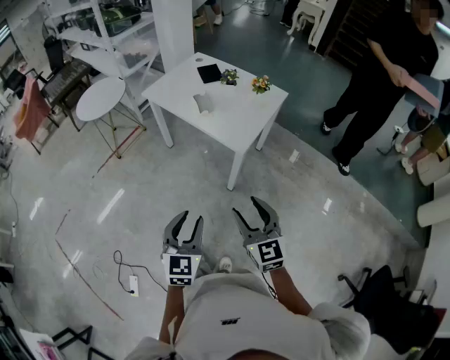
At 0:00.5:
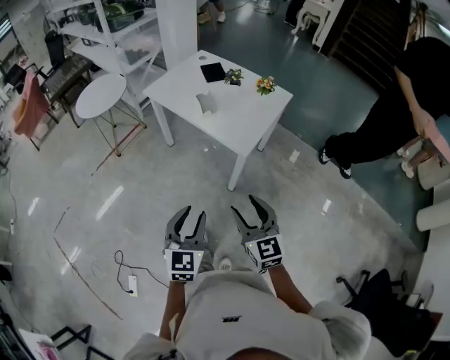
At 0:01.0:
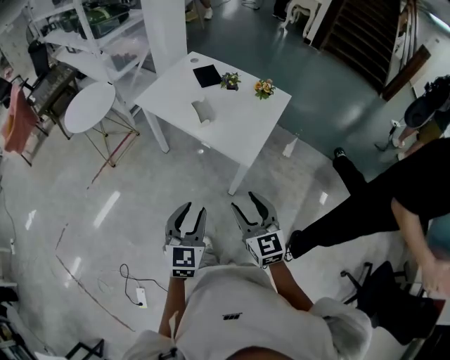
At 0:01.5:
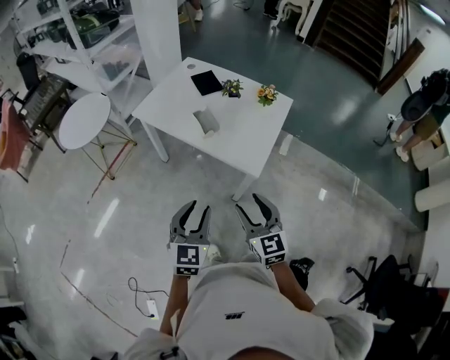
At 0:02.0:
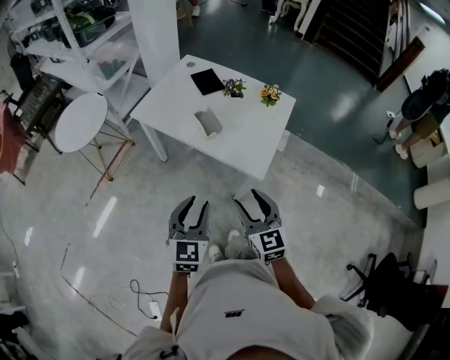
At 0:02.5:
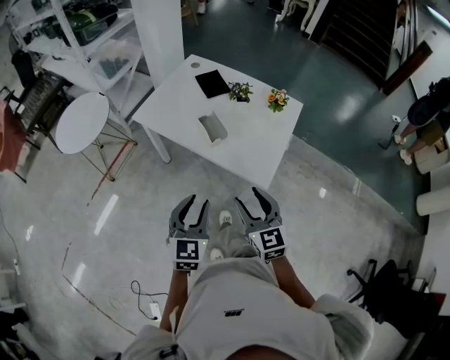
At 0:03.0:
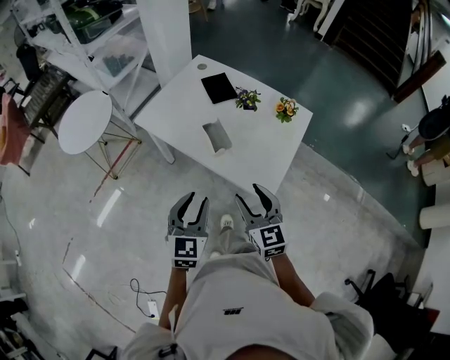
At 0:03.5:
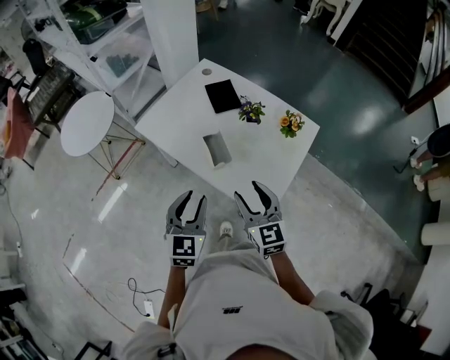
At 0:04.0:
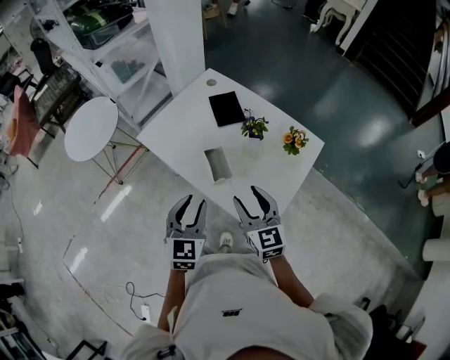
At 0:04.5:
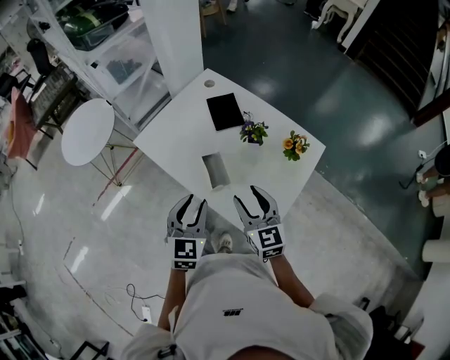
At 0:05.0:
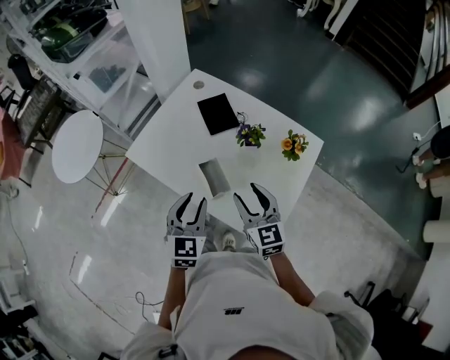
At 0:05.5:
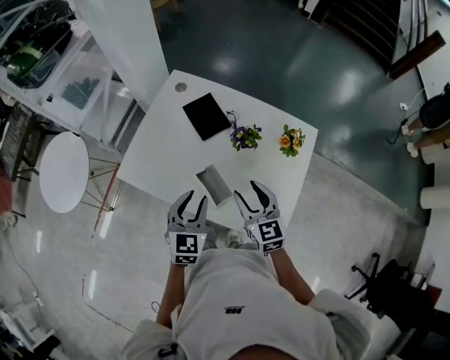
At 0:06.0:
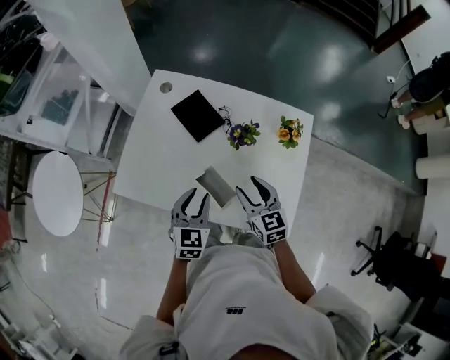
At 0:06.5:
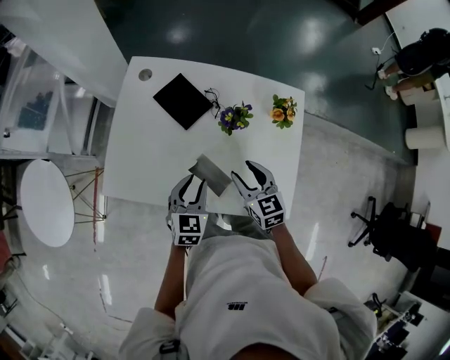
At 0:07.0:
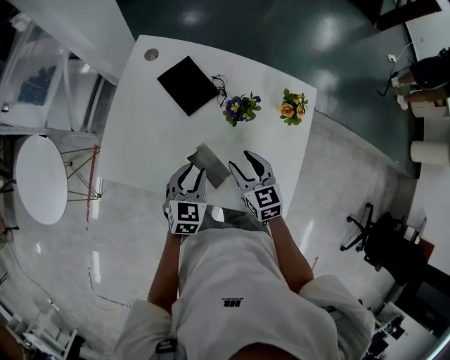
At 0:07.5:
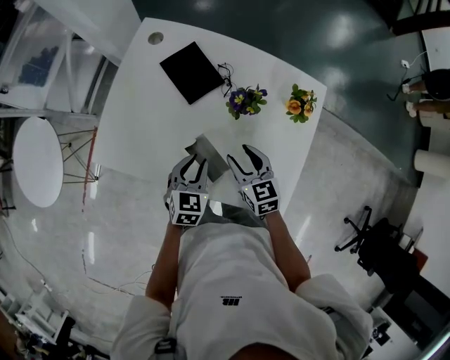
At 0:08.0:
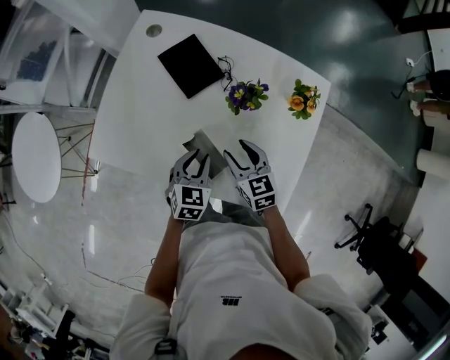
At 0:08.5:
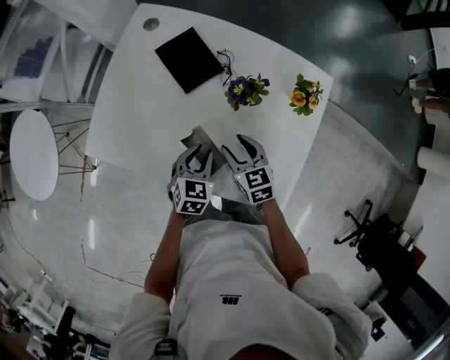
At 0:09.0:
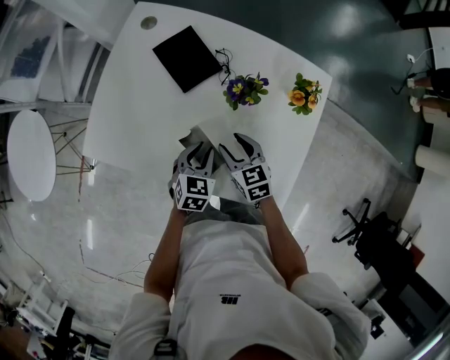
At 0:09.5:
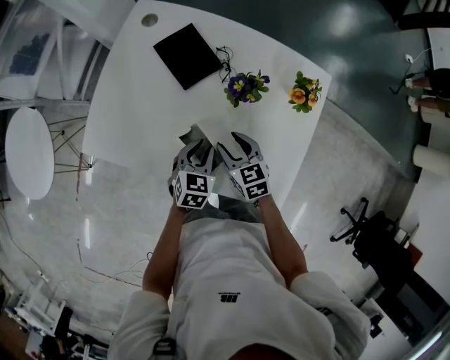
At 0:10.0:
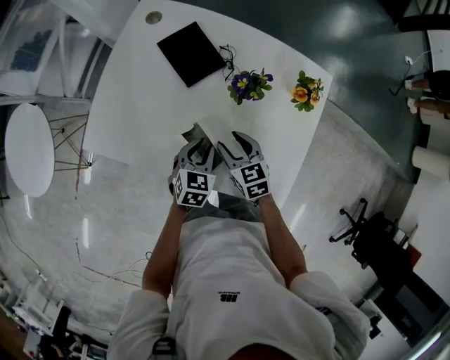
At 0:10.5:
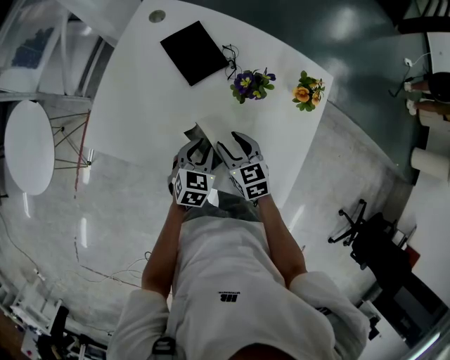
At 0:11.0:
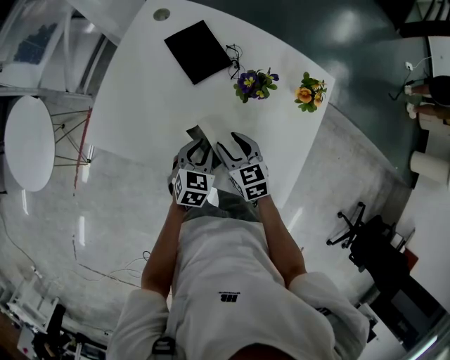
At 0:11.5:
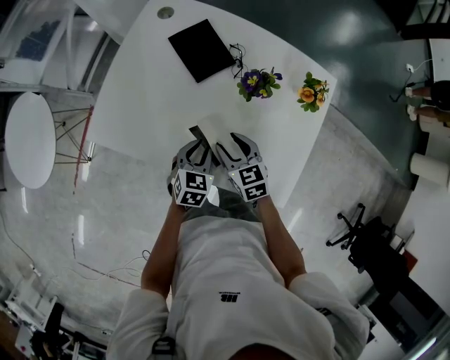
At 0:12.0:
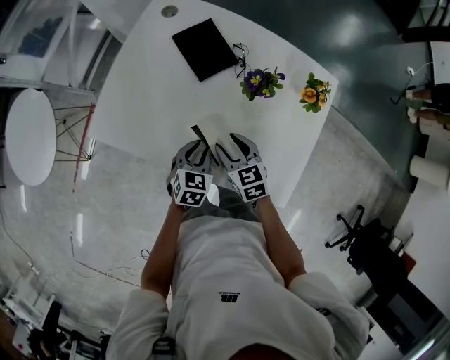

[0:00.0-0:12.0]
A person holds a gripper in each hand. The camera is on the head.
0:00.0 to 0:02.0: The left gripper goes roughly 25 cm forward. The right gripper moves forward and to the left, about 25 cm.
0:02.0 to 0:04.0: The two grippers go approximately 25 cm forward.
0:04.0 to 0:06.0: Both grippers move forward and downward, roughly 20 cm. The left gripper turns by about 30 degrees; the right gripper turns by approximately 30 degrees.
0:06.0 to 0:08.0: The two grippers go approximately 10 cm downward.
0:08.0 to 0:10.0: The grippers make only small movements.
0:10.0 to 0:12.0: There are only small adjustments of the grippers.

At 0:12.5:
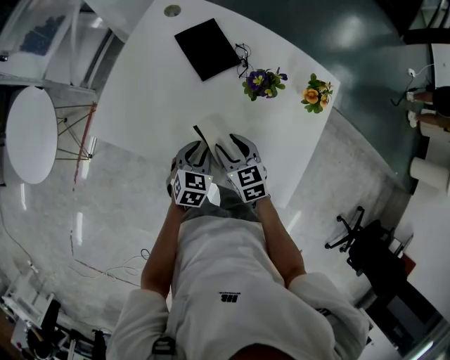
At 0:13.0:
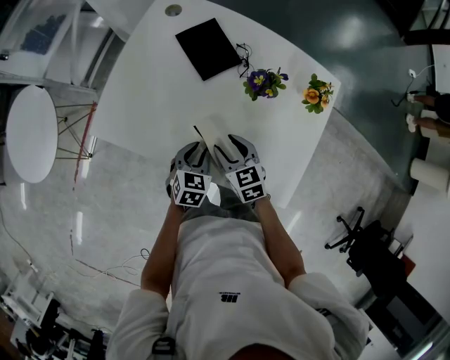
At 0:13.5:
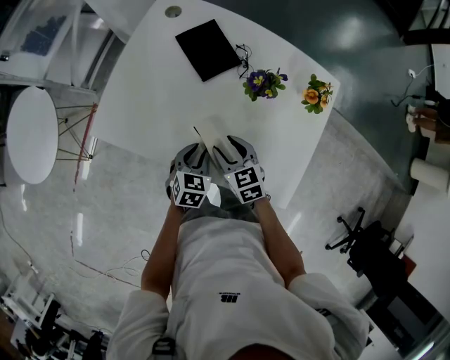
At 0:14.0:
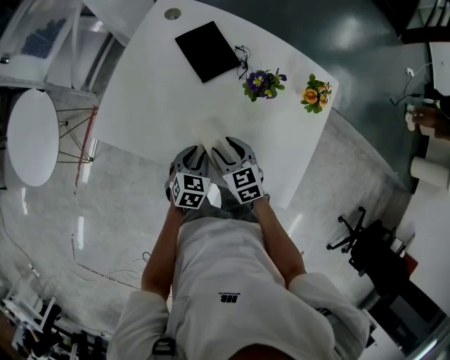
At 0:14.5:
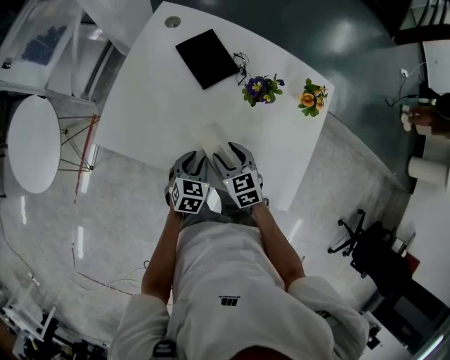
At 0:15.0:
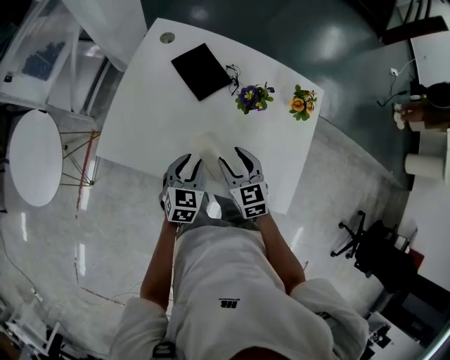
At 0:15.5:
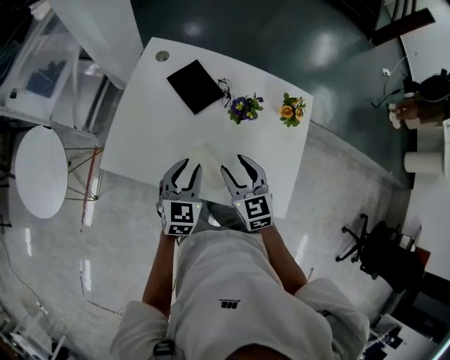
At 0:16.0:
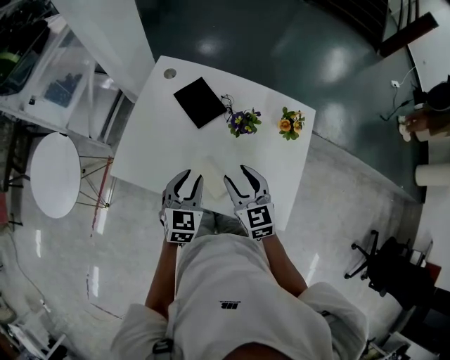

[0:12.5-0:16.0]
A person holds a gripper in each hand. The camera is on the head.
0:12.5 to 0:14.5: The grippers make only small movements.
0:14.5 to 0:16.0: Both grippers travel together upward, some 20 cm.

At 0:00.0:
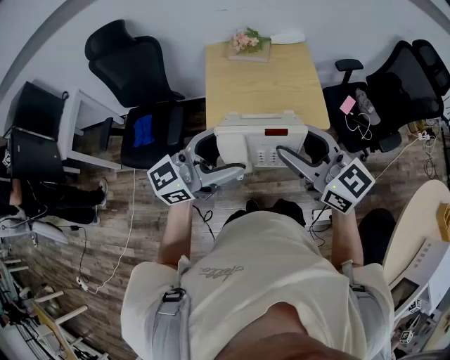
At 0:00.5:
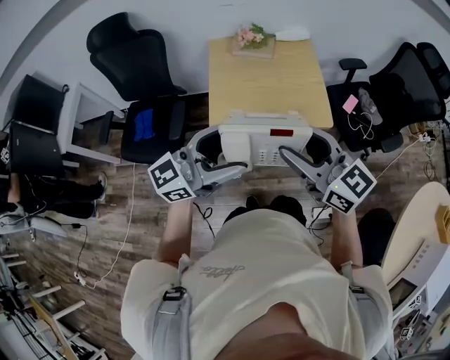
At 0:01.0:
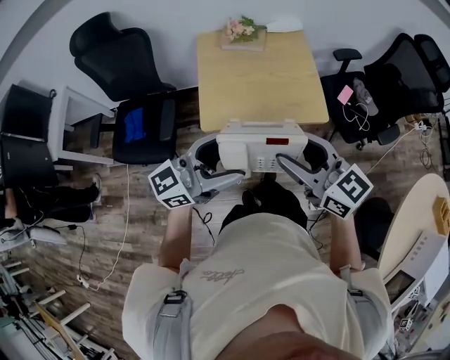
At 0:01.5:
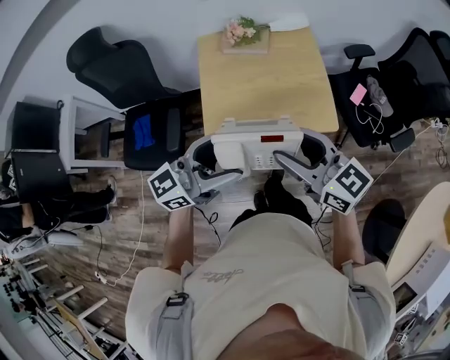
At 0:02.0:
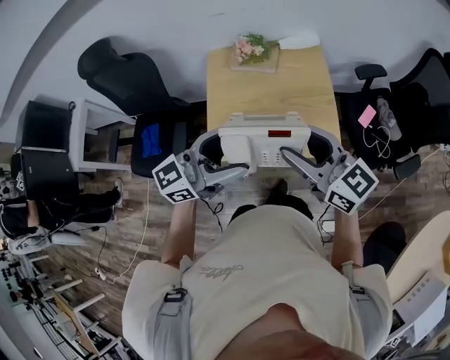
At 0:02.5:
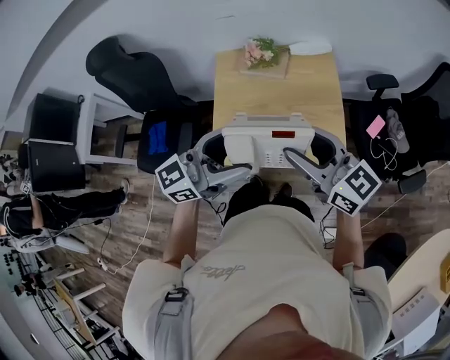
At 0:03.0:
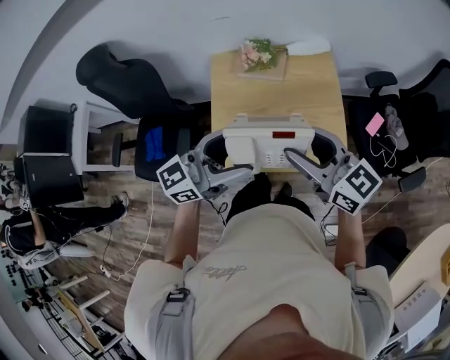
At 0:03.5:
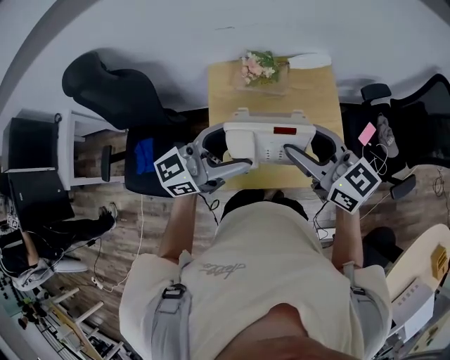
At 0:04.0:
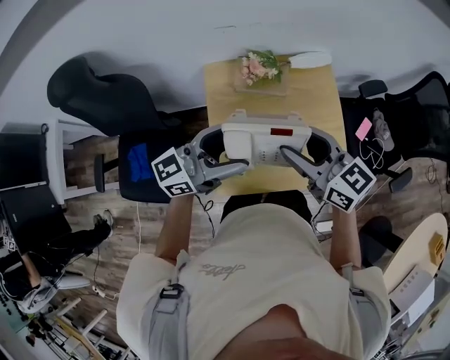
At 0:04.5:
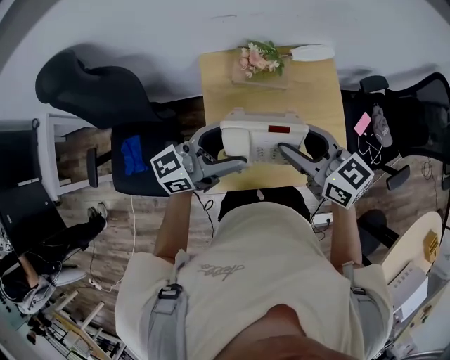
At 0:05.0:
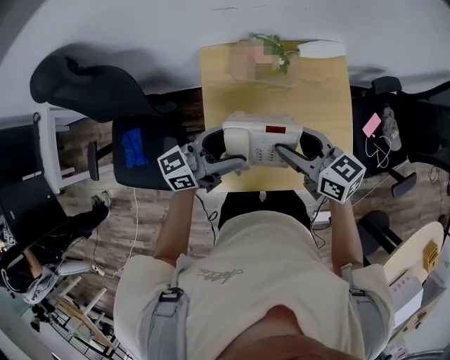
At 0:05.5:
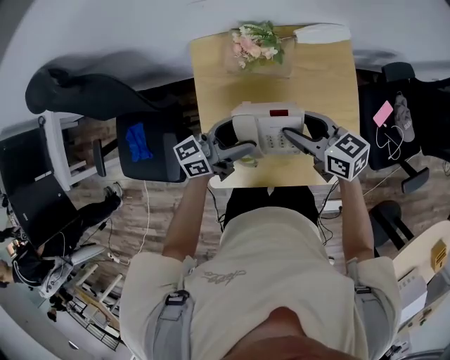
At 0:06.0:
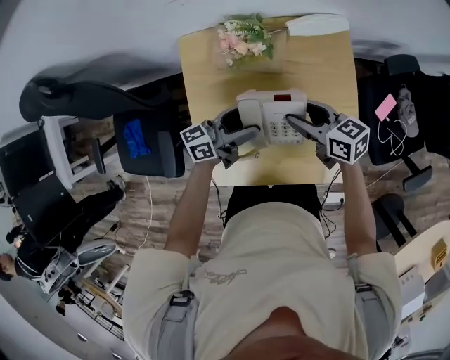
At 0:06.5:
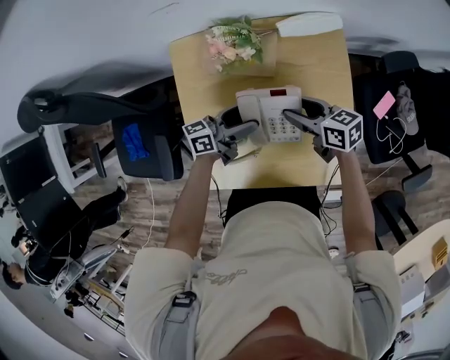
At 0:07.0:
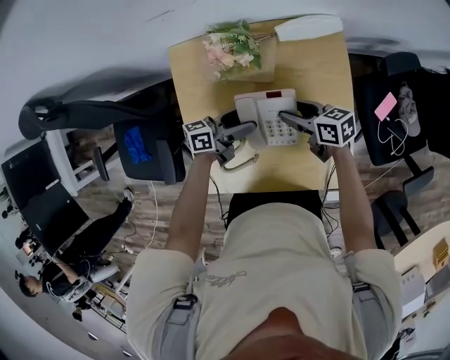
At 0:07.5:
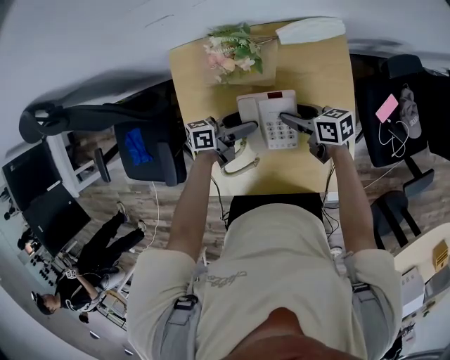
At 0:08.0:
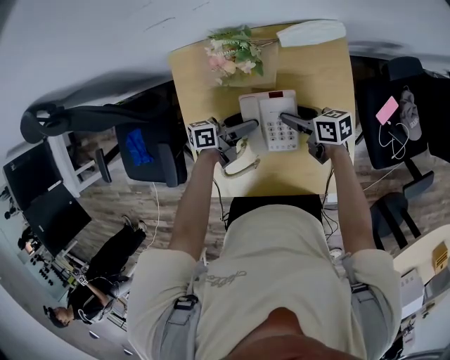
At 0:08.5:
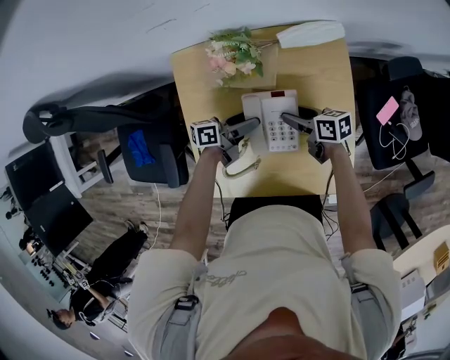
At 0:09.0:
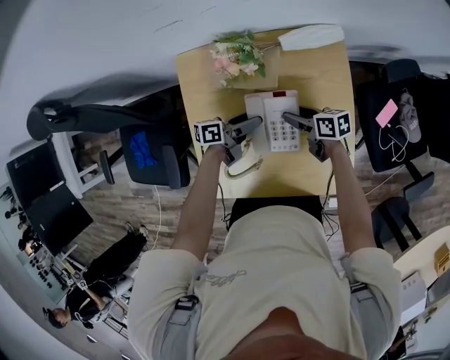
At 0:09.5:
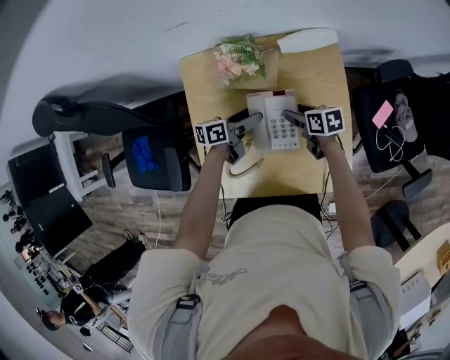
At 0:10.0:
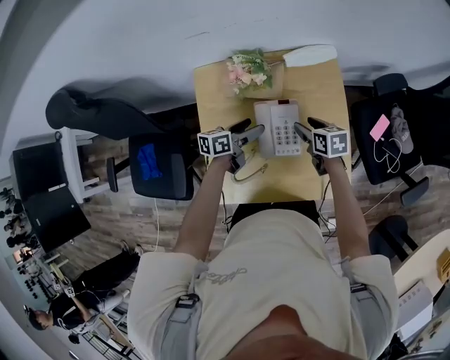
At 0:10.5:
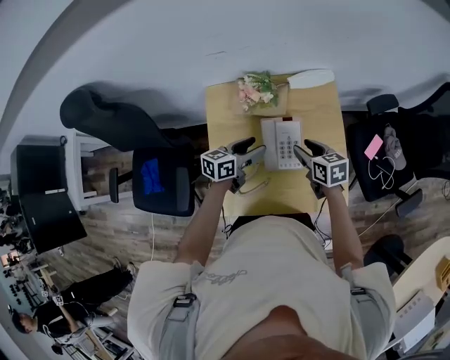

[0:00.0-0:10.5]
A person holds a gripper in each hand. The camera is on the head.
0:00.0 to 0:02.0: Both grippers move forward, roughly 20 cm.
0:02.0 to 0:04.0: Both grippers move forward and to the left, some 20 cm.
0:04.0 to 0:06.5: Both grippers travel together downward, forward and to the right, approximately 35 cm. The right gripper changes its angle by roughly 30 degrees, while the left gripper swivels some 40 degrees.
0:06.5 to 0:08.5: The two grippers go roughly 10 cm downward. The left gripper rotates some 20 degrees.
0:08.5 to 0:10.5: Both grippers travel together upward, approximately 15 cm. The right gripper turns by roughly 30 degrees. The left gripper turns by about 30 degrees, and closes up.

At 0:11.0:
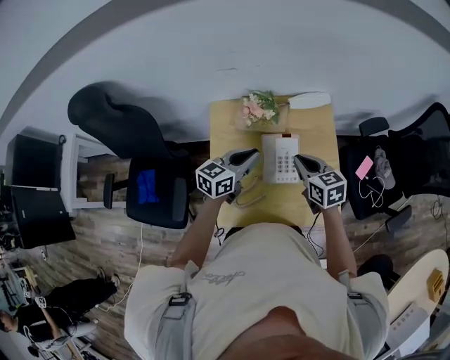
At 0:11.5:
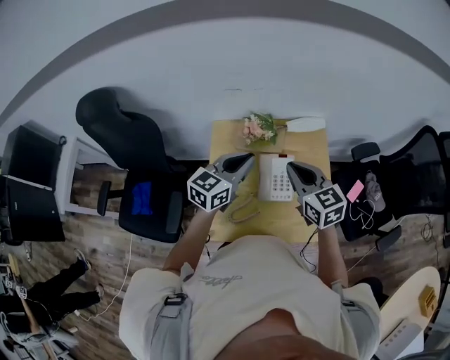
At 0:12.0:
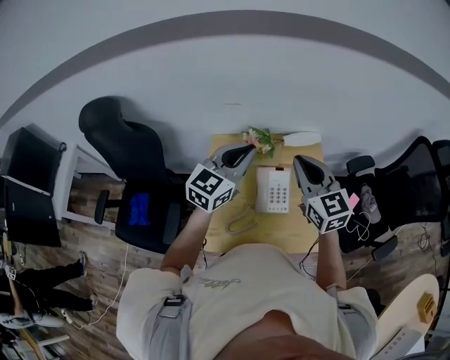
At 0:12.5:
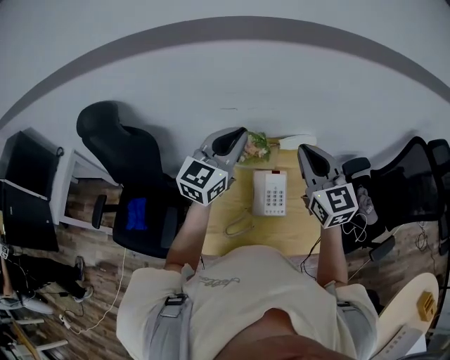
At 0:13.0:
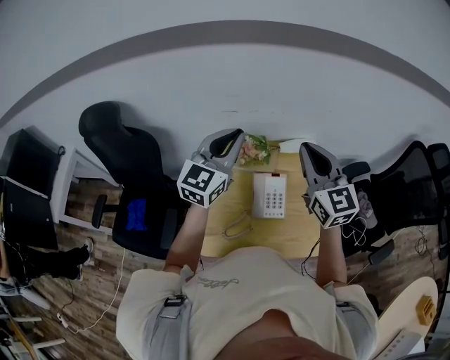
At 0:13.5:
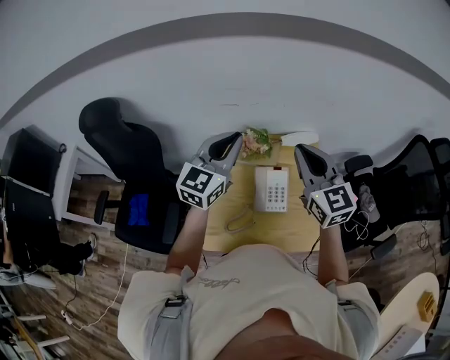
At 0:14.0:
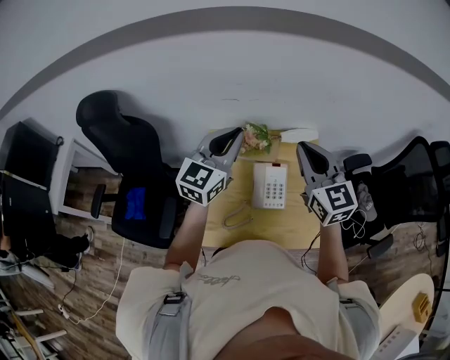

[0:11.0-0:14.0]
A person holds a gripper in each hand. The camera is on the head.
0:11.0 to 0:12.5: Both grippers travel together upward, about 25 cm. The right gripper changes its angle by some 40 degrees. Meanwhile the left gripper swivels approximately 40 degrees.
0:12.5 to 0:14.0: The grippers stay close to where they were, moving slightly.
